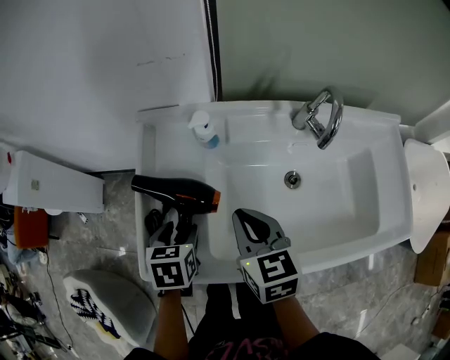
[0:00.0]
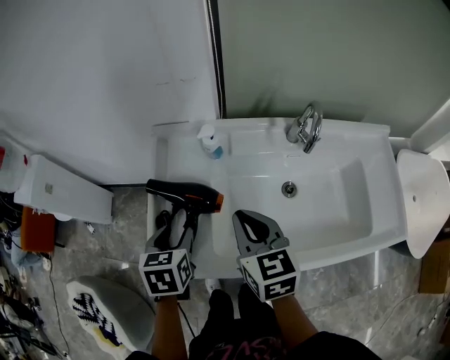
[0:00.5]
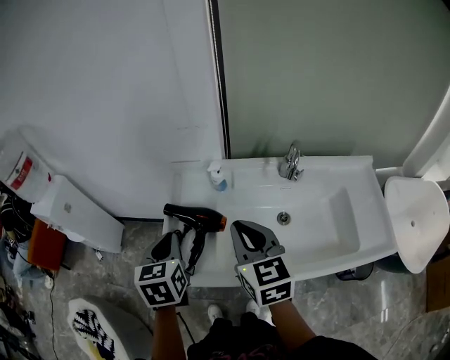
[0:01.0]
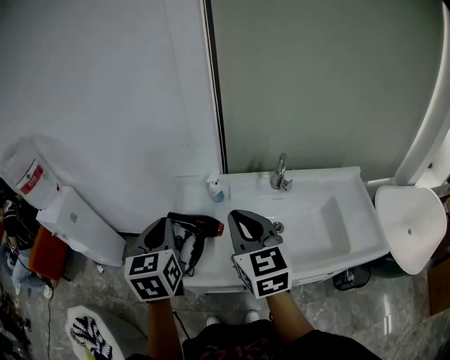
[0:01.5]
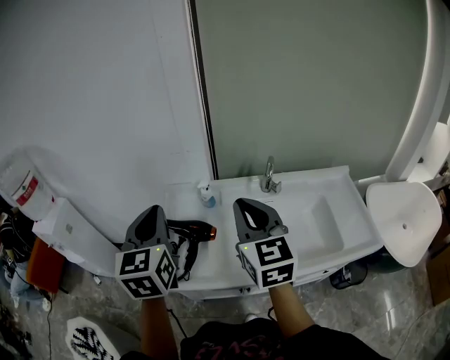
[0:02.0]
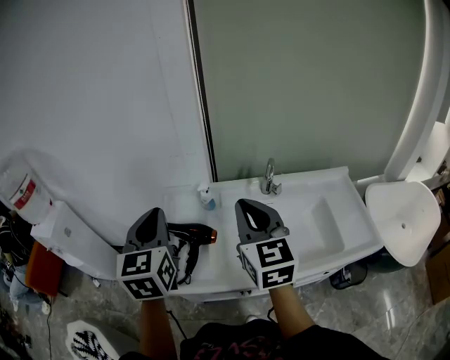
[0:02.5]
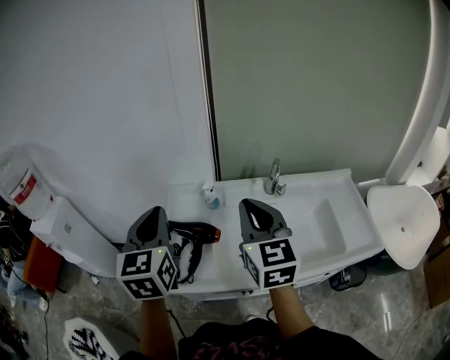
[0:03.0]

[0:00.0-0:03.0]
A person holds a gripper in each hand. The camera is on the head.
0:00.0 to 0:01.5: The two grippers go some 30 cm upward. The left gripper points its fingers approximately 40 degrees further upward, and closes up; the right gripper swivels approximately 30 degrees.
0:01.5 to 0:03.0: The left gripper shifts approximately 5 cm upward.

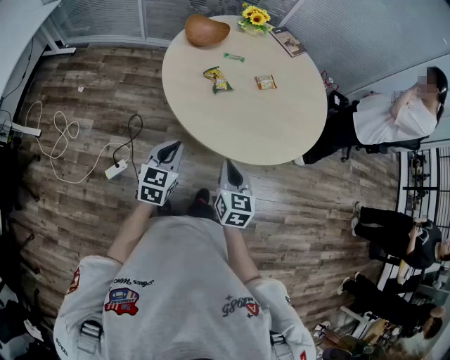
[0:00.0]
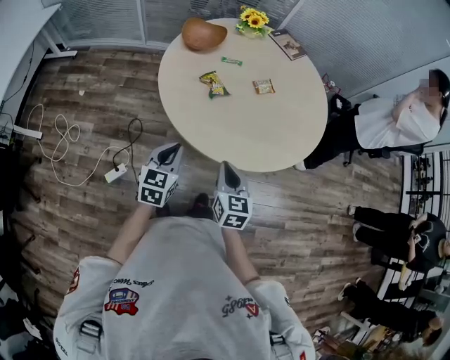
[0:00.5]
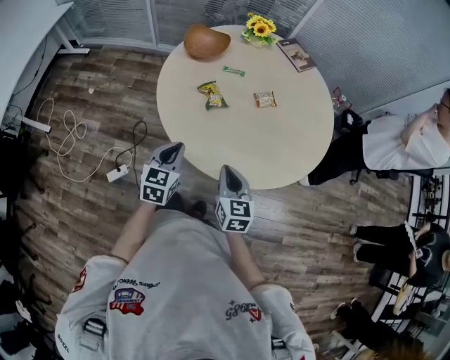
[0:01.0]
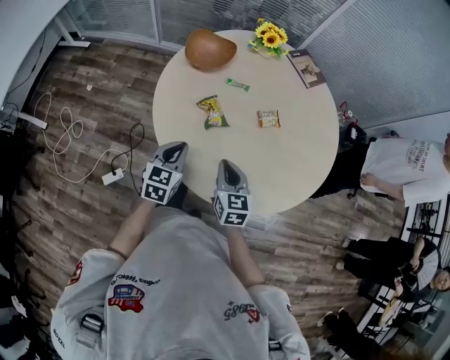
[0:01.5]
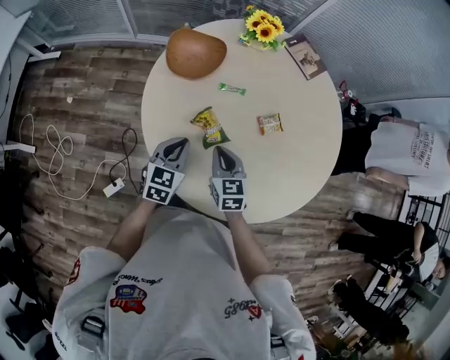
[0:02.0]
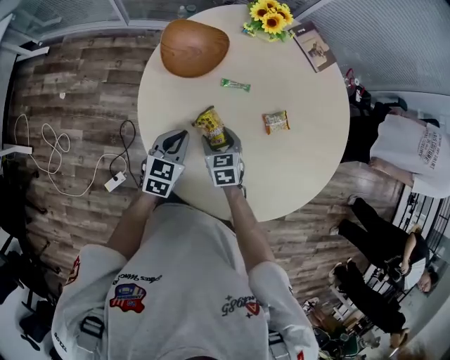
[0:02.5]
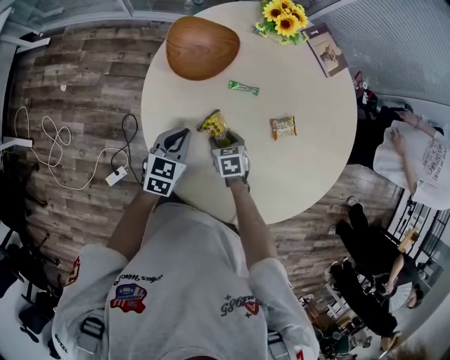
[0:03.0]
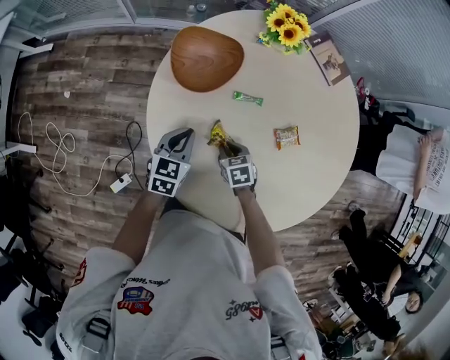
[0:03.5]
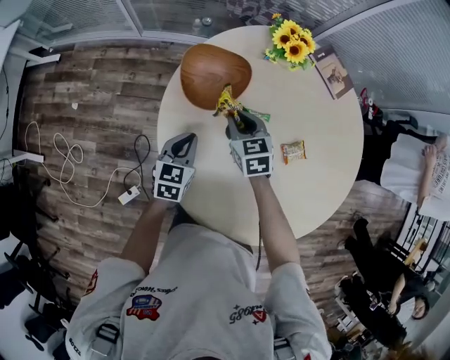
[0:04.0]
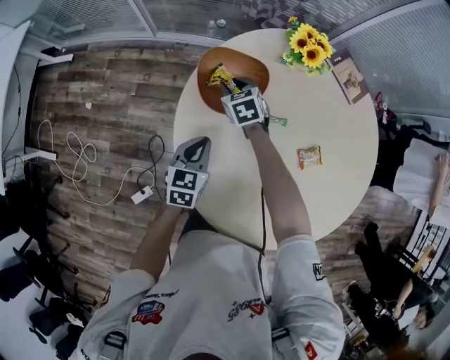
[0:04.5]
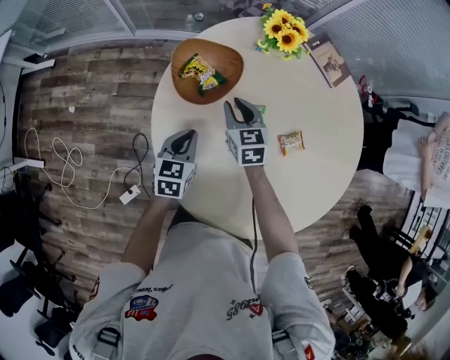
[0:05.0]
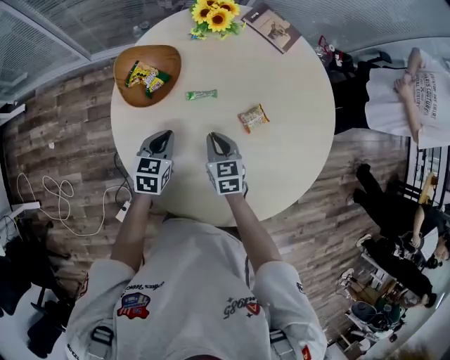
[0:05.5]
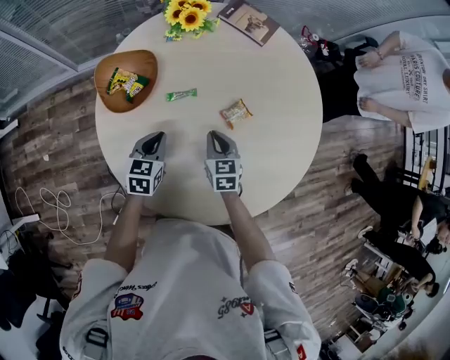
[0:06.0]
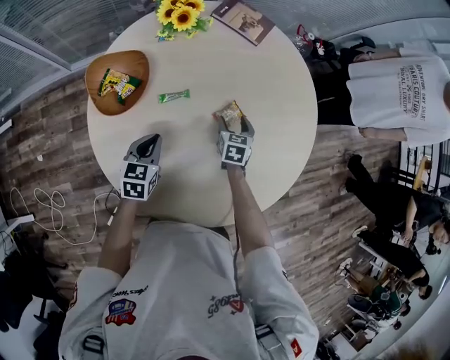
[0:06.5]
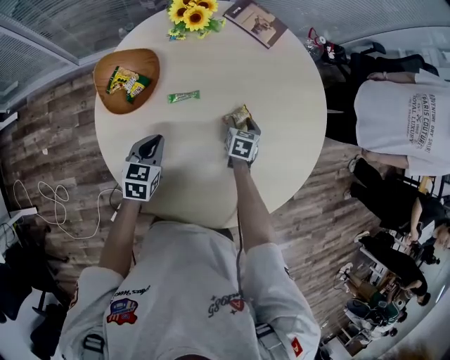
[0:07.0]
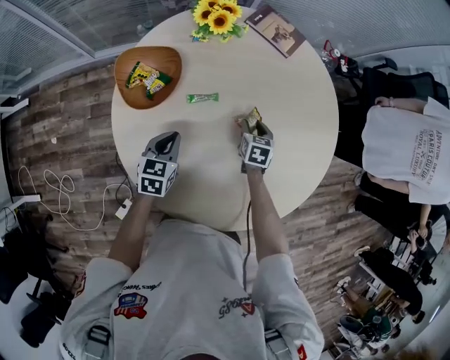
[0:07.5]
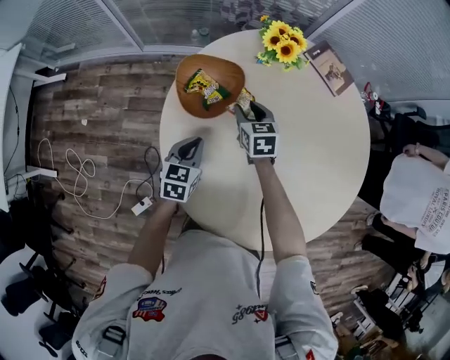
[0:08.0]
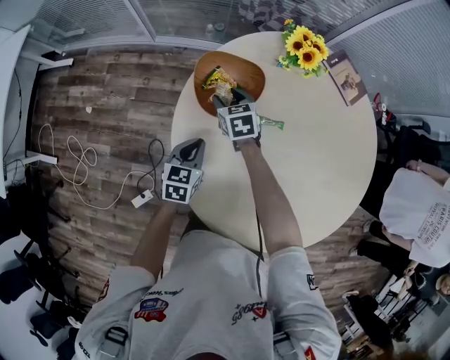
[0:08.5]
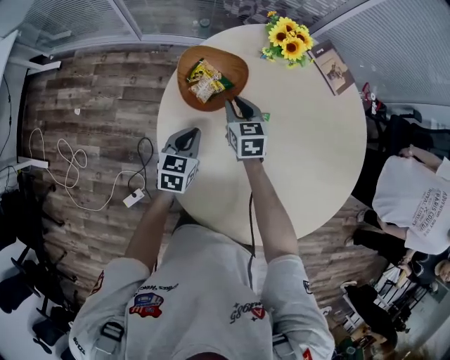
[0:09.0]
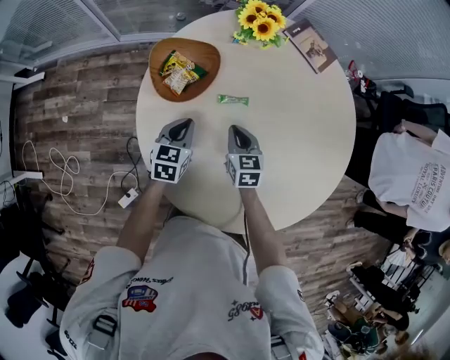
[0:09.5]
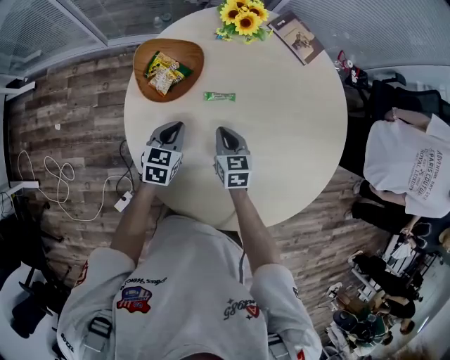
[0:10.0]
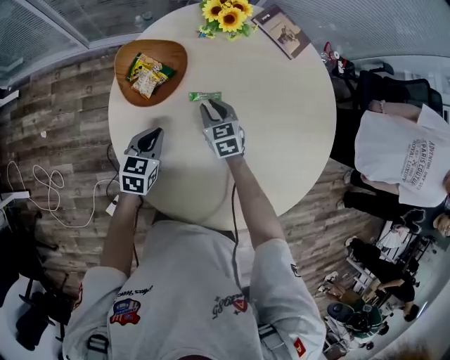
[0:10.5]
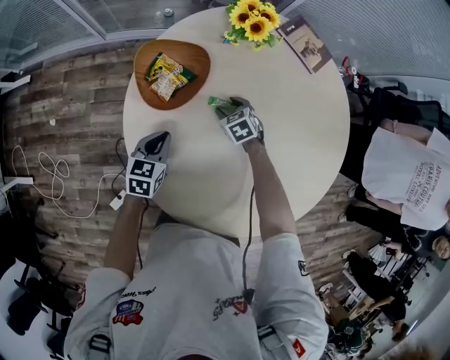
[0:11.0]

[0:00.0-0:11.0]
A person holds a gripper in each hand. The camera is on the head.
0:00.0 to 0:02.0: The grippers both shift forward by about 35 cm.
0:02.0 to 0:03.5: The right gripper is displaced downward and forward by roughly 15 cm, rotates about 30 degrees, and opens, then closes once more. Meanwhile the left gripper heads forward and downward, covering approximately 10 cm.
0:03.5 to 0:05.5: The left gripper goes some 5 cm to the right. Meanwhile the right gripper shifts some 10 cm upward and to the right, travels forward and back again, roughly 25 cm each way, and changes its angle by roughly 30 degrees.
0:05.5 to 0:07.5: The right gripper is displaced to the right and forward by approximately 15 cm, rotates approximately 20 degrees, and opens up.
0:07.5 to 0:09.0: The right gripper ends up roughly 30 cm from where it was, and turns by some 30 degrees. The left gripper shifts by about 10 cm.
0:09.0 to 0:11.0: The right gripper moves downward and to the right, approximately 15 cm, changes its angle by some 30 degrees, and opens.

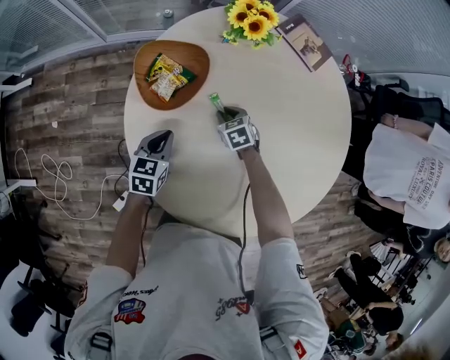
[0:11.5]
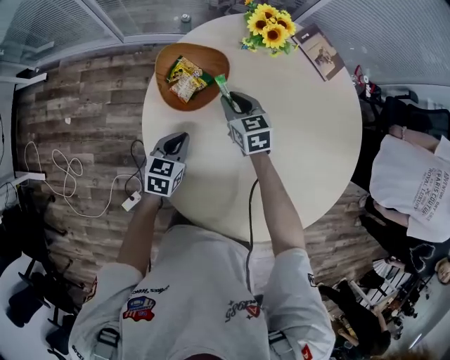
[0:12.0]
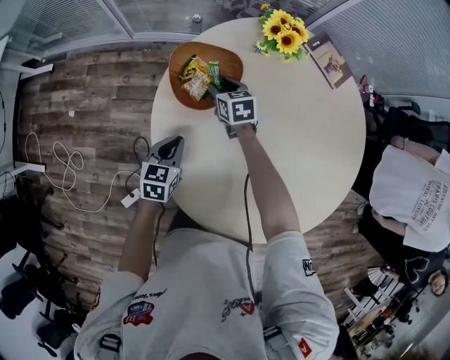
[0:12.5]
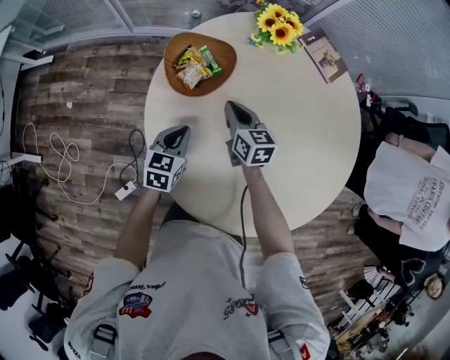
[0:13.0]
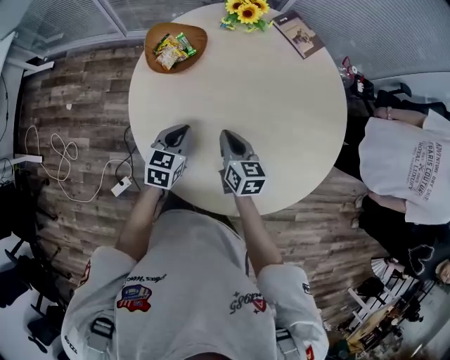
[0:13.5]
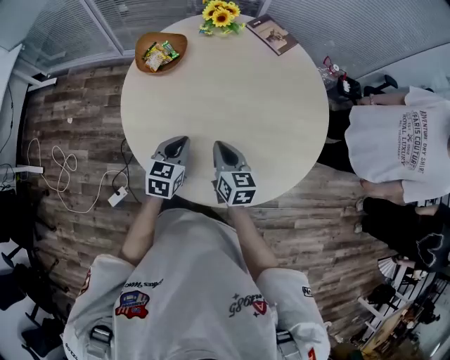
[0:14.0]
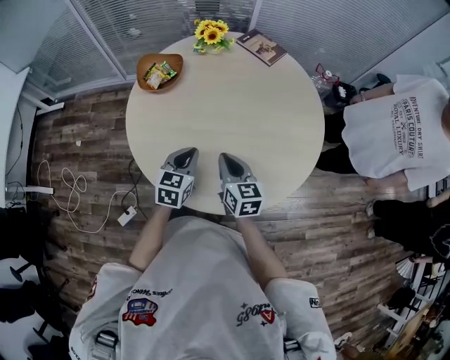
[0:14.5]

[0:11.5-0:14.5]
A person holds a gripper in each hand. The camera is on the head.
0:11.5 to 0:13.0: The right gripper goes up and down, about 15 cm each way, reversing 2 times, and points its fingers roughly 30 degrees further upward.
0:13.0 to 0:14.5: The right gripper heads backward and to the right, covering some 35 cm, while the left gripper travels to the right, backward and upward by some 30 cm.

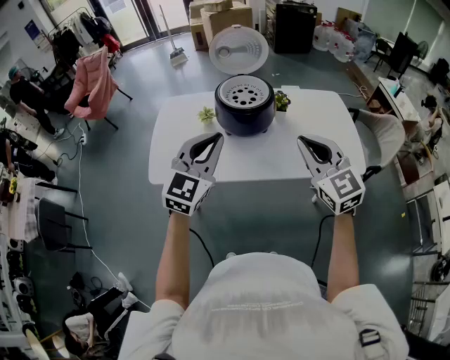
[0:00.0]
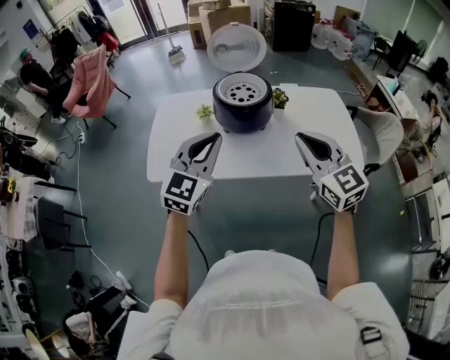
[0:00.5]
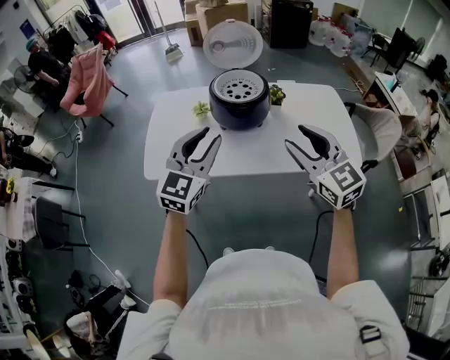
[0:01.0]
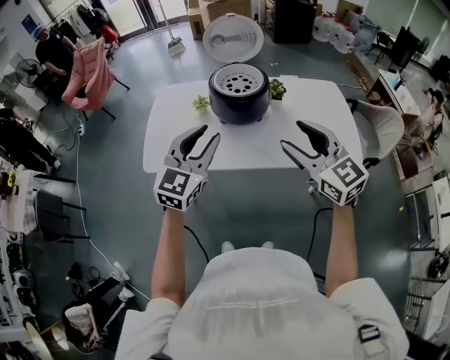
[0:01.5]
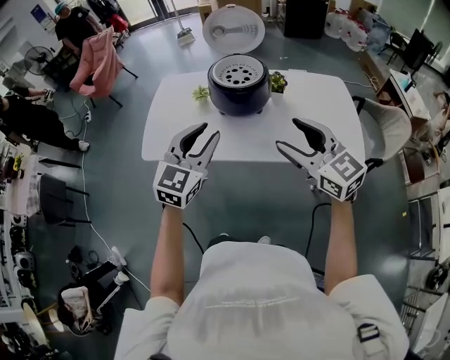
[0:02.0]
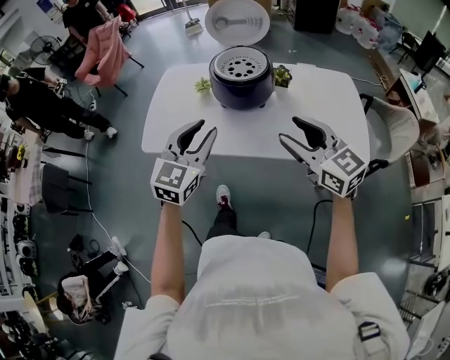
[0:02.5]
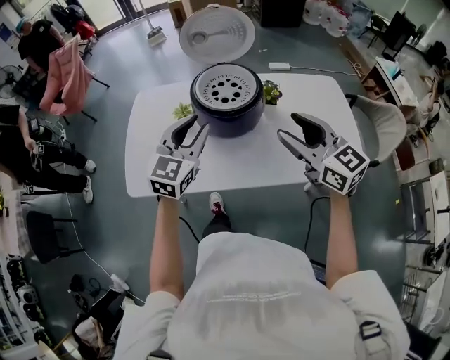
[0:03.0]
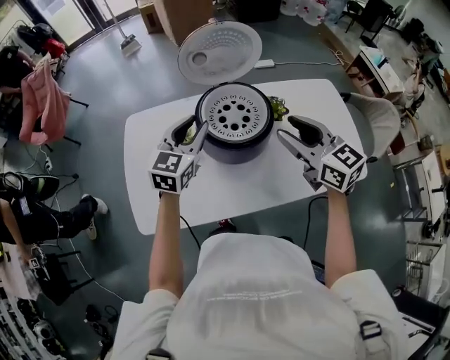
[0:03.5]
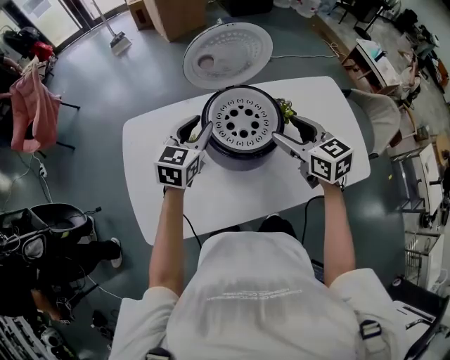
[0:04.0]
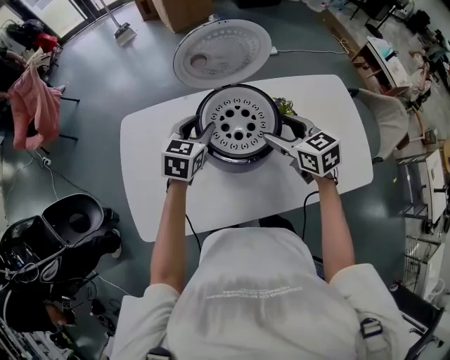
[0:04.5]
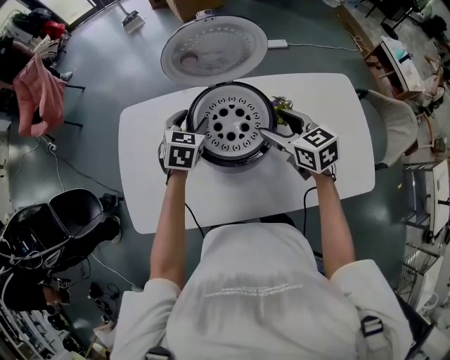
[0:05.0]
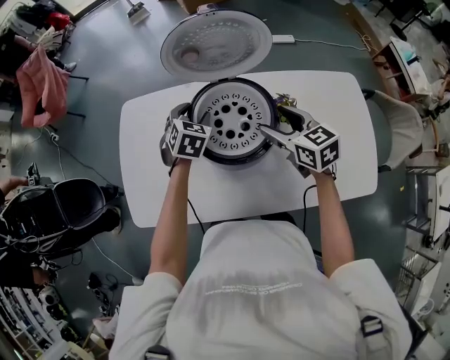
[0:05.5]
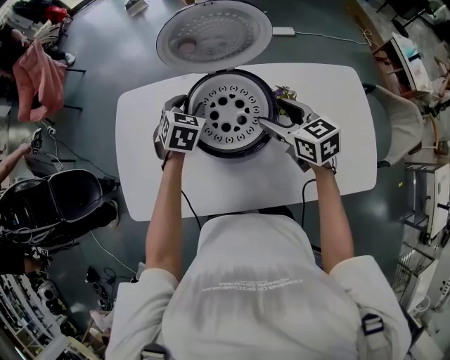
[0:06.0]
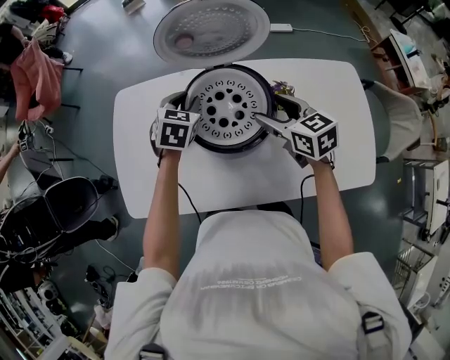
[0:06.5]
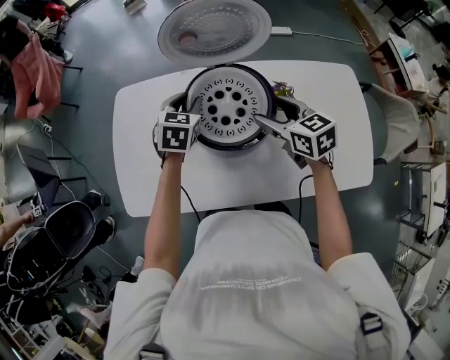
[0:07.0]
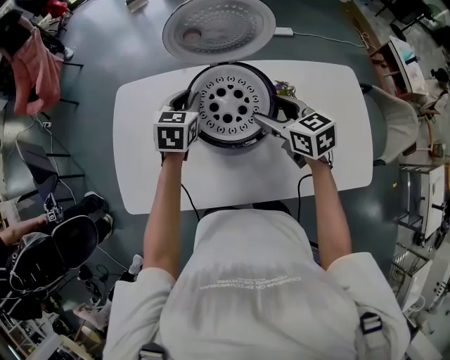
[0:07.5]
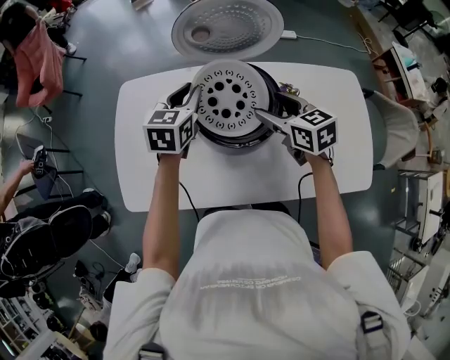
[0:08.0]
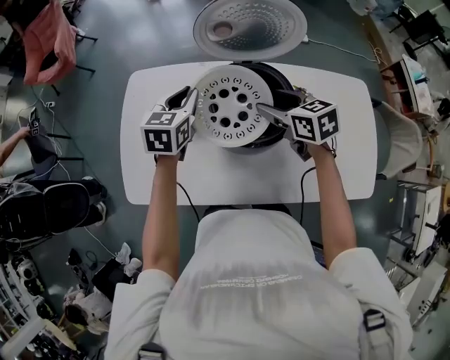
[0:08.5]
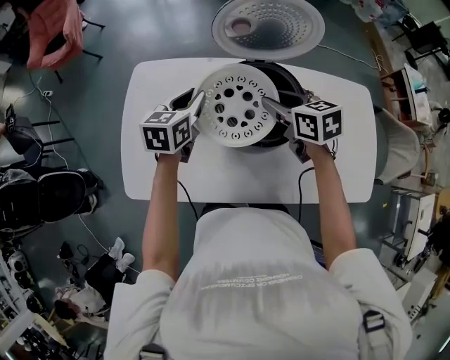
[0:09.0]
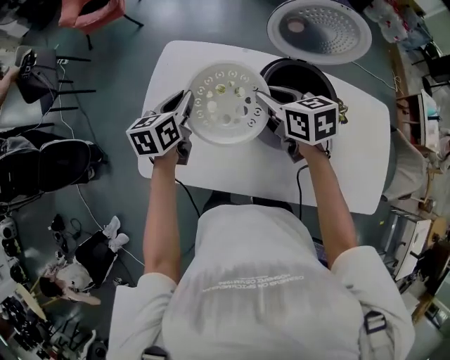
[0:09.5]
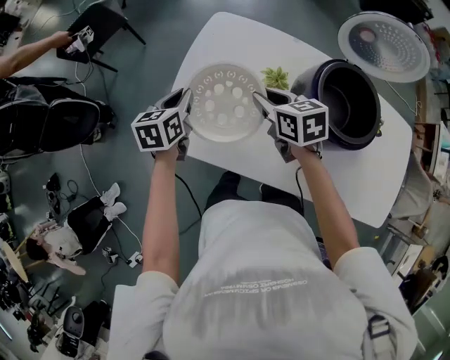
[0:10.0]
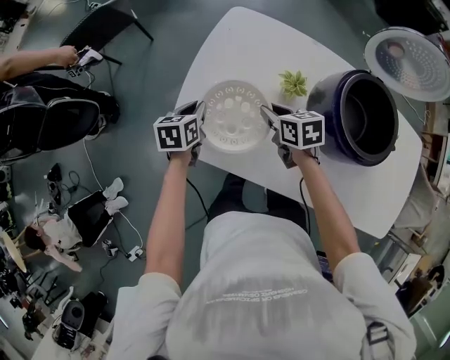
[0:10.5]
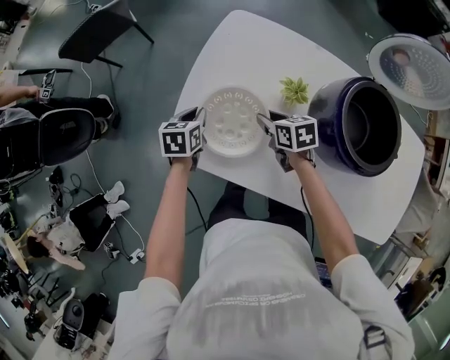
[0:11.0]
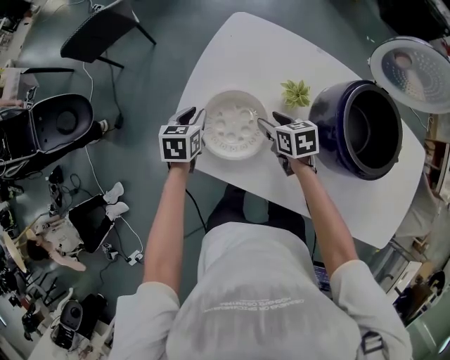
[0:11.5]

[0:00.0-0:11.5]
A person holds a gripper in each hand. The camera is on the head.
0:00.0 to 0:02.0: The left gripper opens. The right gripper swivels approximately 20 degrees, and opens its fingers.
0:02.0 to 0:04.0: The two grippers go some 35 cm forward. The left gripper swivels approximately 20 degrees. The right gripper changes its angle by roughly 30 degrees.
0:04.0 to 0:06.0: Both grippers travel together downward and forward, approximately 10 cm. The left gripper changes its angle by roughly 40 degrees.
0:06.0 to 0:07.5: The left gripper rotates about 20 degrees, and closes up.
0:07.5 to 0:09.5: The two grippers go about 20 cm to the left. The left gripper swivels roughly 30 degrees. Meanwhile the right gripper closes up.
0:09.5 to 0:11.5: Both grippers move downward and to the left, about 25 cm. The right gripper opens its fingers. Meanwhile the left gripper swivels approximately 20 degrees.
